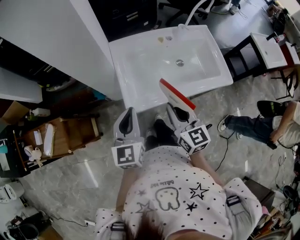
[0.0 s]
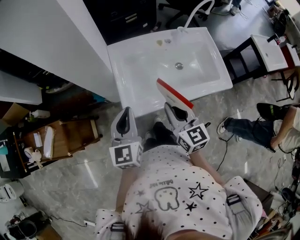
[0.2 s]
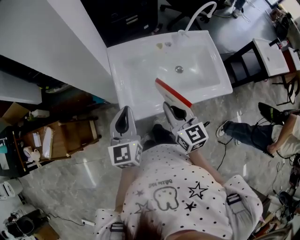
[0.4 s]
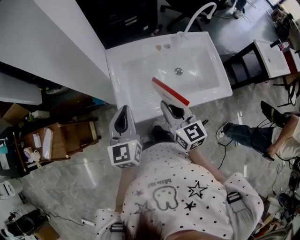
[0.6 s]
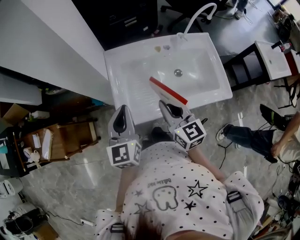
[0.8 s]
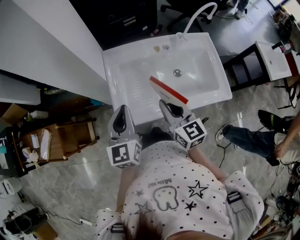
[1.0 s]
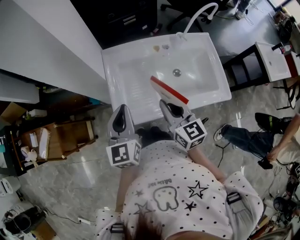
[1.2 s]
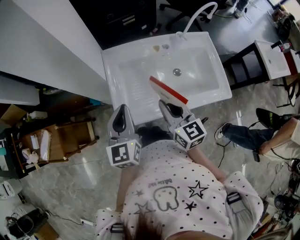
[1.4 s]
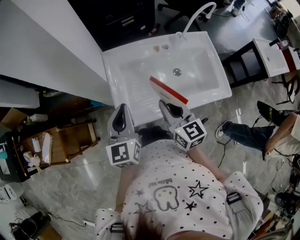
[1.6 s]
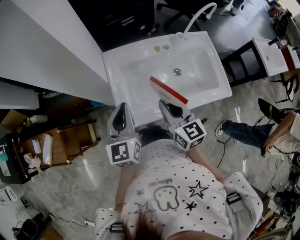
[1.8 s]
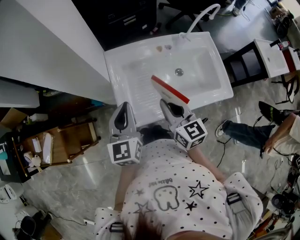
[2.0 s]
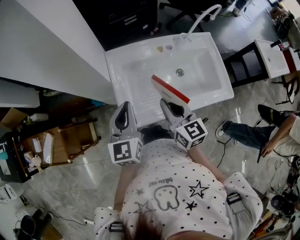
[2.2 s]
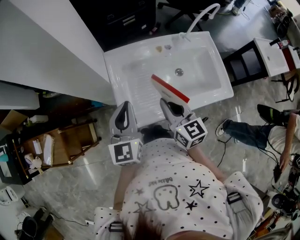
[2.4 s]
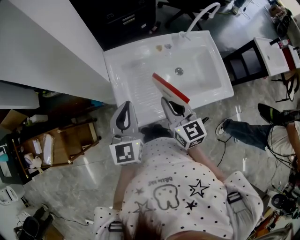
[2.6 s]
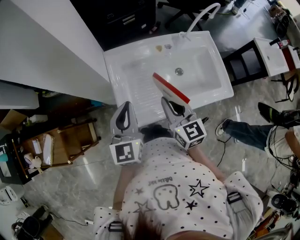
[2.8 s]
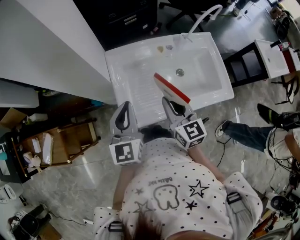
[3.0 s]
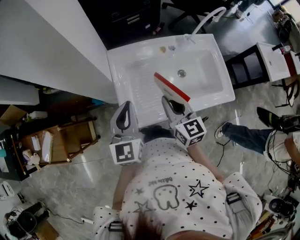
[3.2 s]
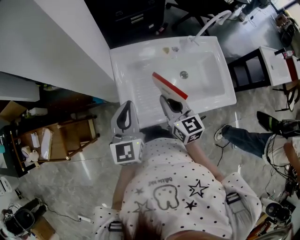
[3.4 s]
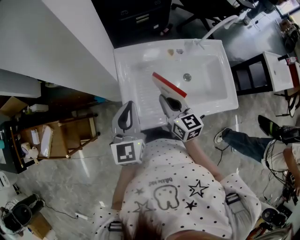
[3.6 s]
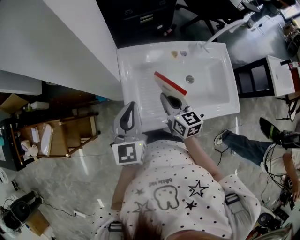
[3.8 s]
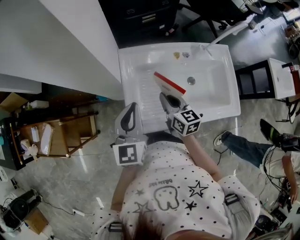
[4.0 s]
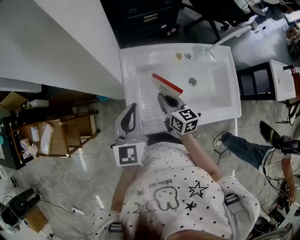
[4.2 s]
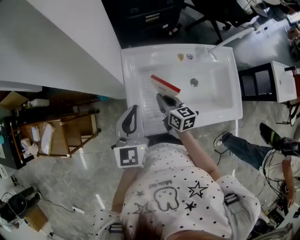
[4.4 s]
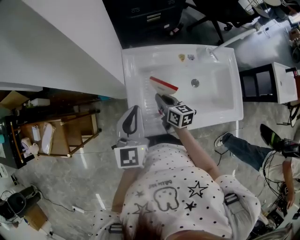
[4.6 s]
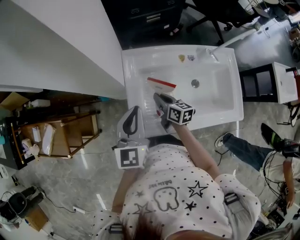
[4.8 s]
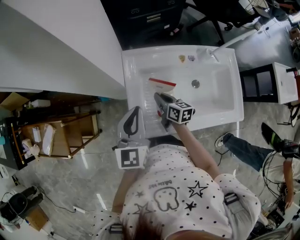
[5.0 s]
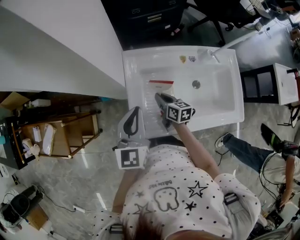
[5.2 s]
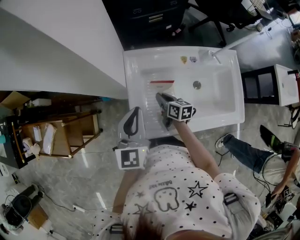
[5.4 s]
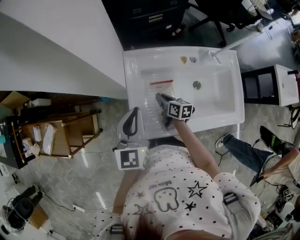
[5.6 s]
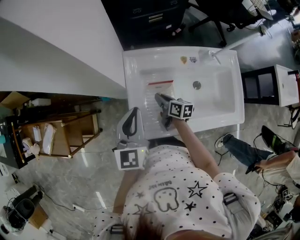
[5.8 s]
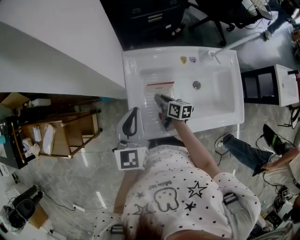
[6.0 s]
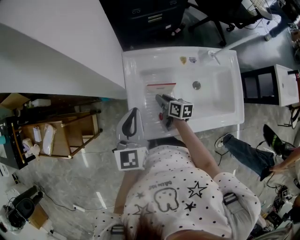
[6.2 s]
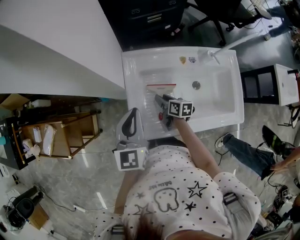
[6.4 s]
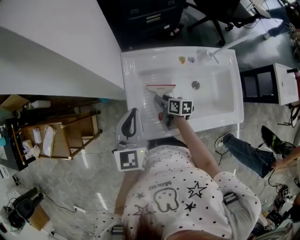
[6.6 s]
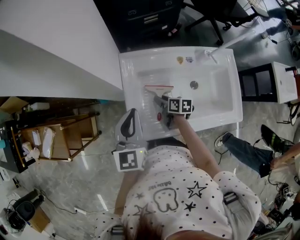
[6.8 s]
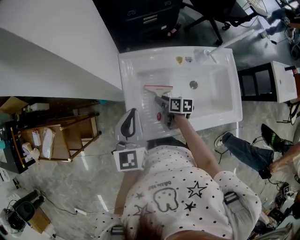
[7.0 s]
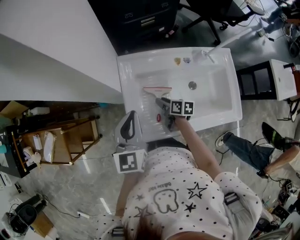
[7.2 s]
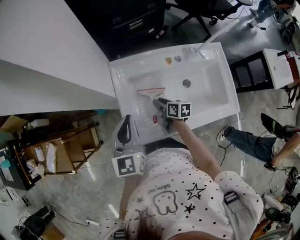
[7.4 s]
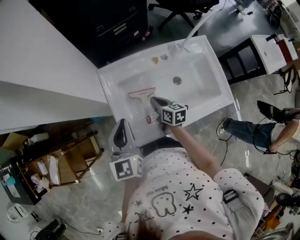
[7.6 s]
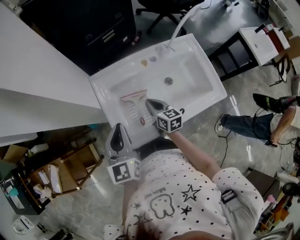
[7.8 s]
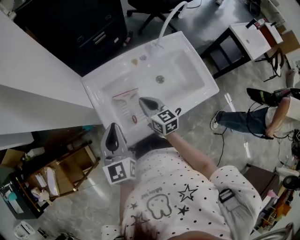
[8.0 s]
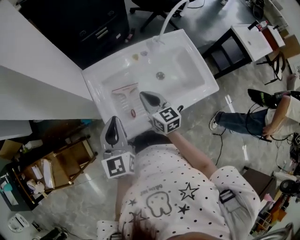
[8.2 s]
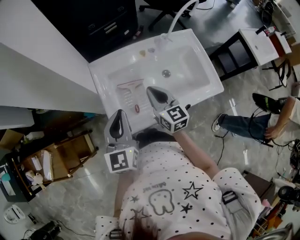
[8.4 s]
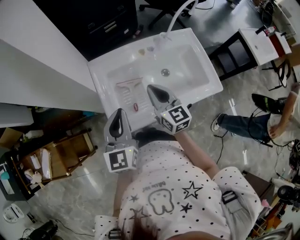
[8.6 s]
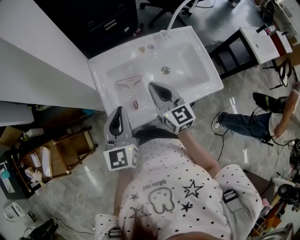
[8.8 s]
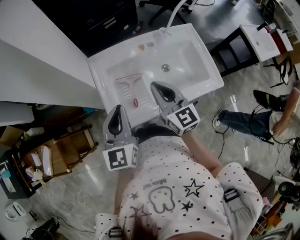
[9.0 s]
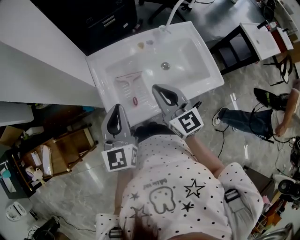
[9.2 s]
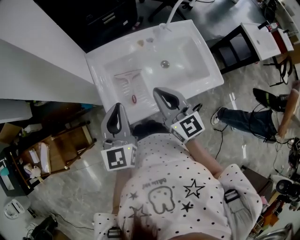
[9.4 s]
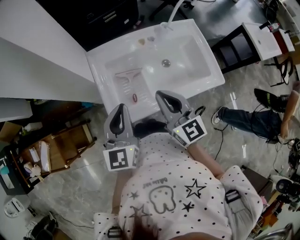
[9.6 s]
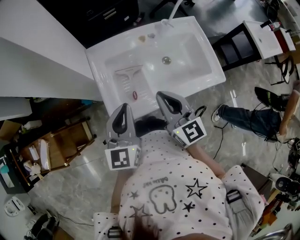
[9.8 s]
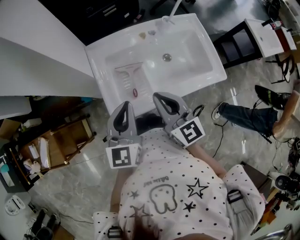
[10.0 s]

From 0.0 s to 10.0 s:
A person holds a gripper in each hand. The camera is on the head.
From 0.0 s to 1.4 s: Both grippers travel together forward, some 10 cm.
From 1.4 s to 2.8 s: The grippers move only a little.
From 2.8 s to 4.2 s: The right gripper is displaced downward and forward by about 15 cm, and swivels roughly 20 degrees. The left gripper moves some 5 cm.
From 4.2 s to 5.8 s: The right gripper shifts approximately 10 cm downward, and changes its angle by approximately 30 degrees.
From 5.8 s to 7.2 s: The right gripper opens its fingers.
From 7.2 s to 8.6 s: The right gripper moves upward, about 20 cm, rotates roughly 60 degrees, and closes, while the left gripper travels backward and to the right by approximately 10 cm.
From 8.6 s to 10.0 s: The right gripper goes about 10 cm backward.

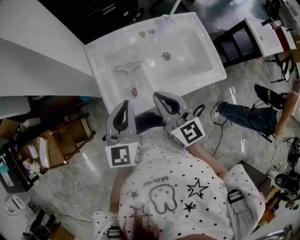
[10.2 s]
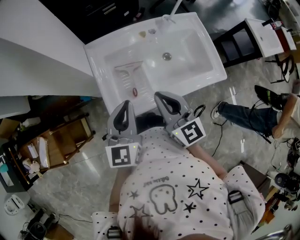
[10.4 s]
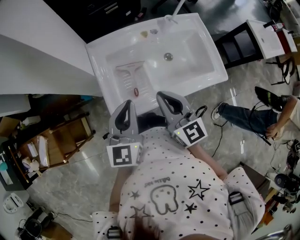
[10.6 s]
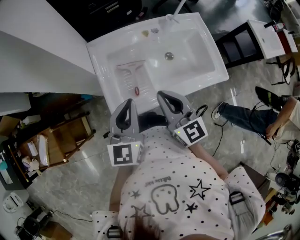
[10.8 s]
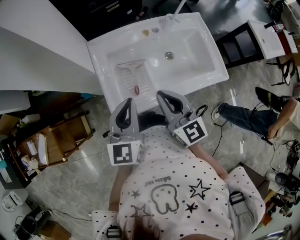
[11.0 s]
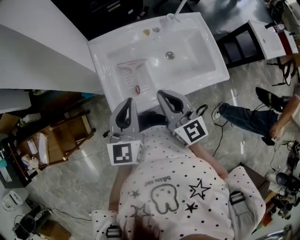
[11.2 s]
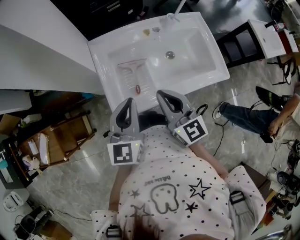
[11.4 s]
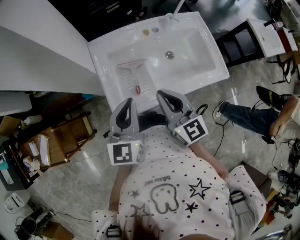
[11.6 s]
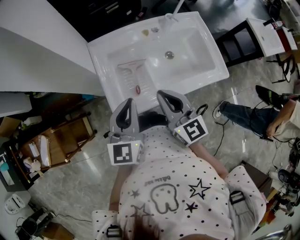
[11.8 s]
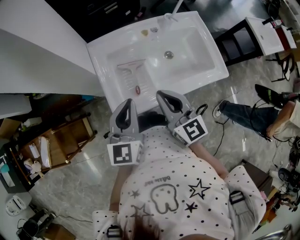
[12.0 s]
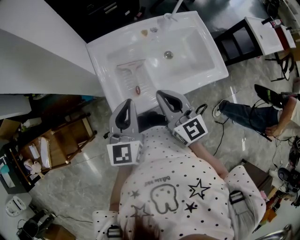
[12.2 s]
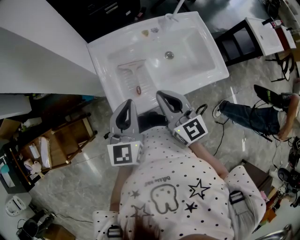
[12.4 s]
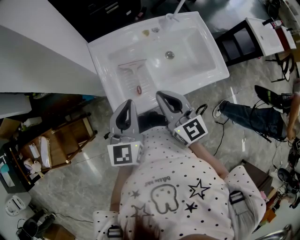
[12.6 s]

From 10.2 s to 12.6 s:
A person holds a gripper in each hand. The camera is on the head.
From 10.2 s to 12.6 s: Neither gripper changes place.

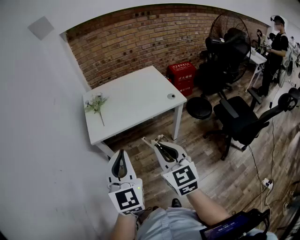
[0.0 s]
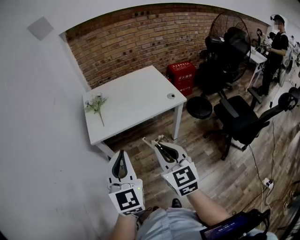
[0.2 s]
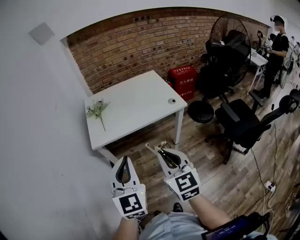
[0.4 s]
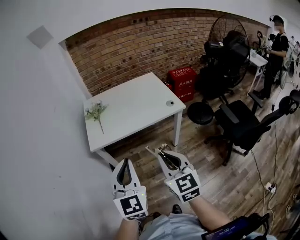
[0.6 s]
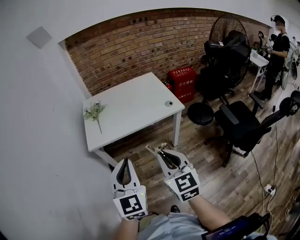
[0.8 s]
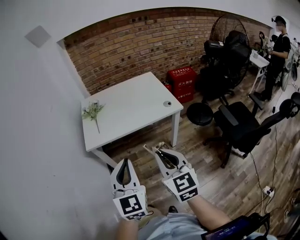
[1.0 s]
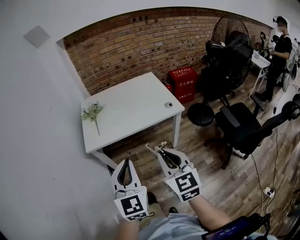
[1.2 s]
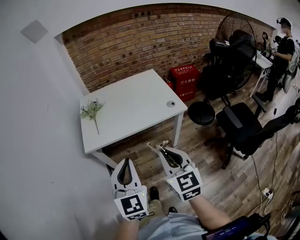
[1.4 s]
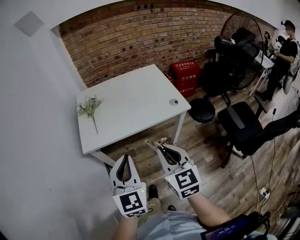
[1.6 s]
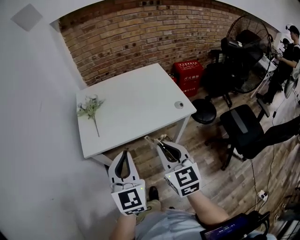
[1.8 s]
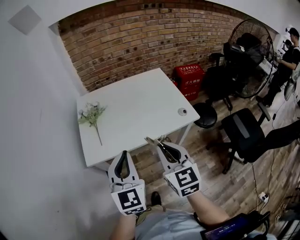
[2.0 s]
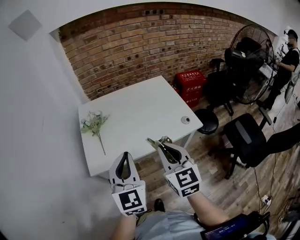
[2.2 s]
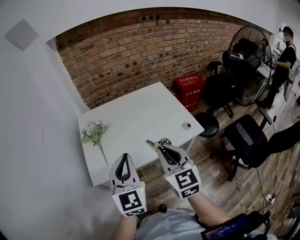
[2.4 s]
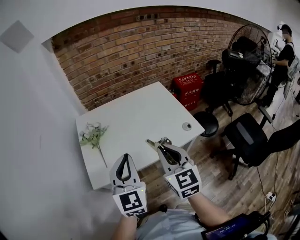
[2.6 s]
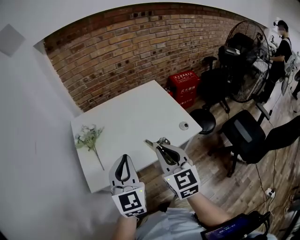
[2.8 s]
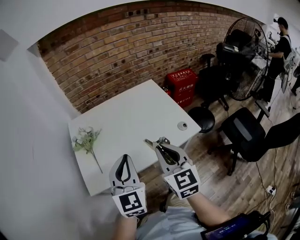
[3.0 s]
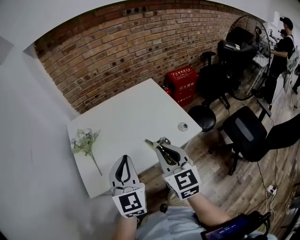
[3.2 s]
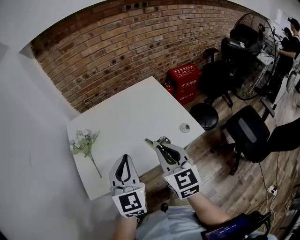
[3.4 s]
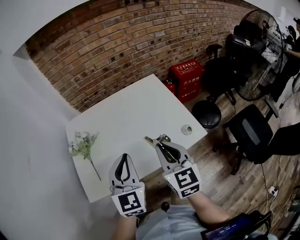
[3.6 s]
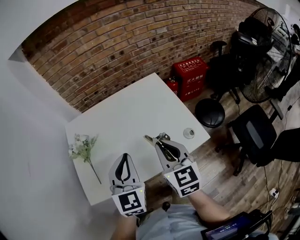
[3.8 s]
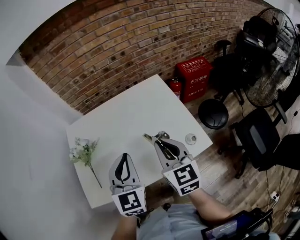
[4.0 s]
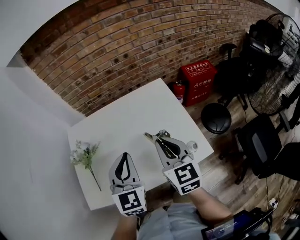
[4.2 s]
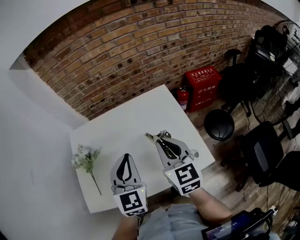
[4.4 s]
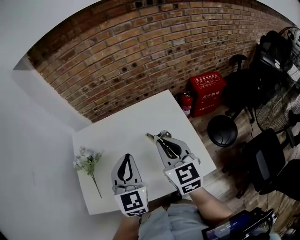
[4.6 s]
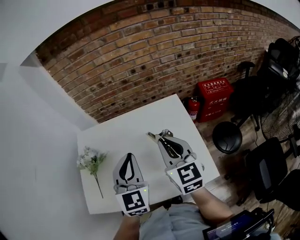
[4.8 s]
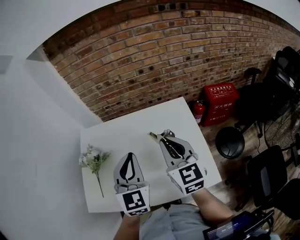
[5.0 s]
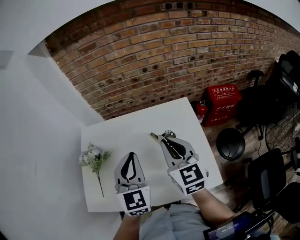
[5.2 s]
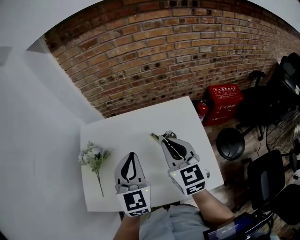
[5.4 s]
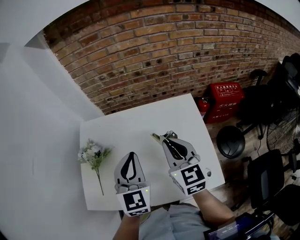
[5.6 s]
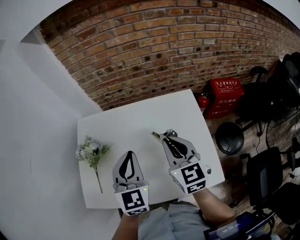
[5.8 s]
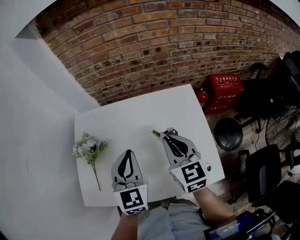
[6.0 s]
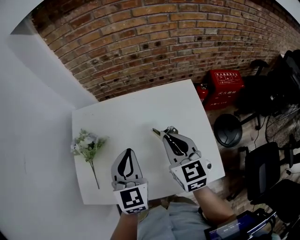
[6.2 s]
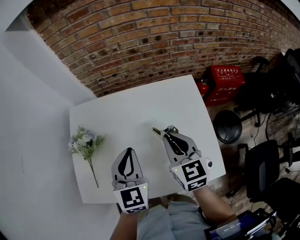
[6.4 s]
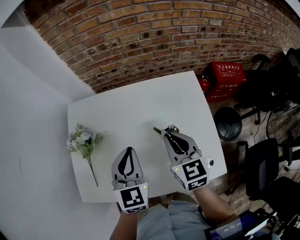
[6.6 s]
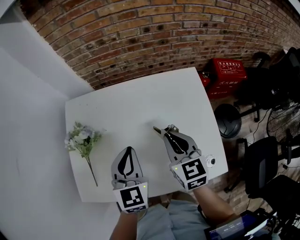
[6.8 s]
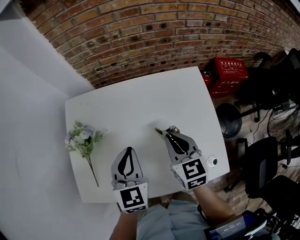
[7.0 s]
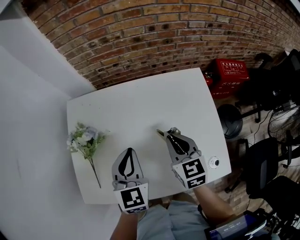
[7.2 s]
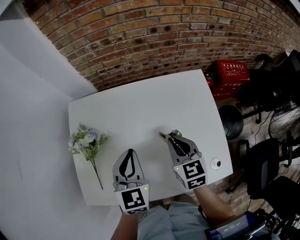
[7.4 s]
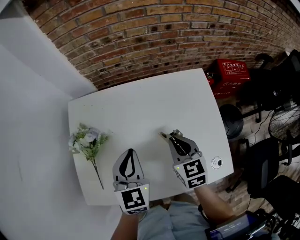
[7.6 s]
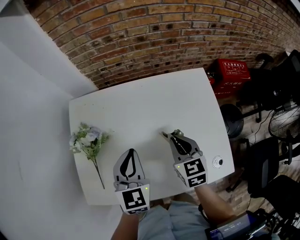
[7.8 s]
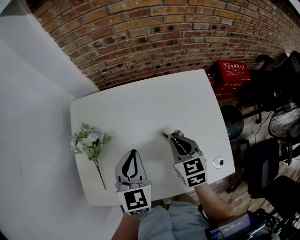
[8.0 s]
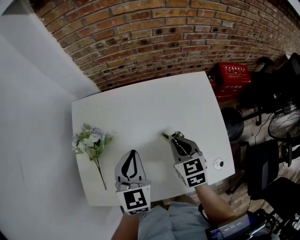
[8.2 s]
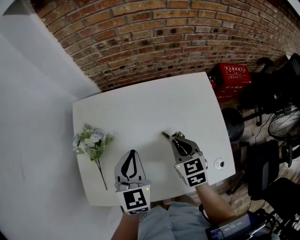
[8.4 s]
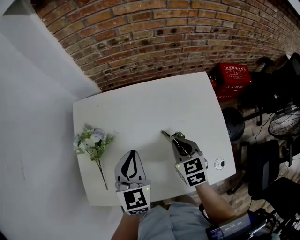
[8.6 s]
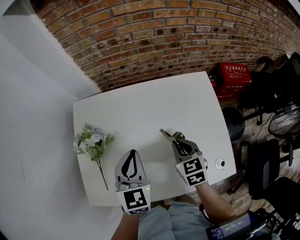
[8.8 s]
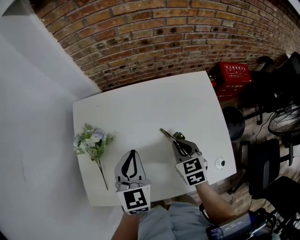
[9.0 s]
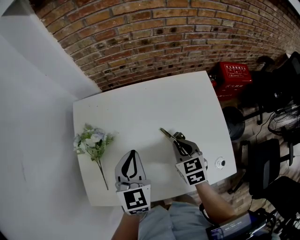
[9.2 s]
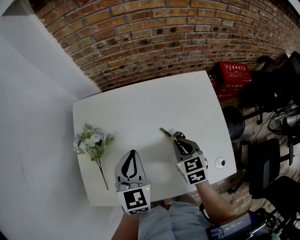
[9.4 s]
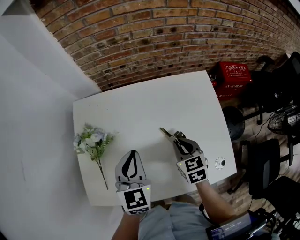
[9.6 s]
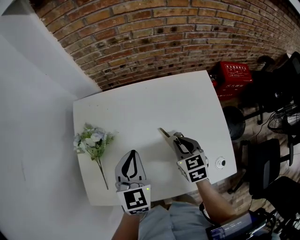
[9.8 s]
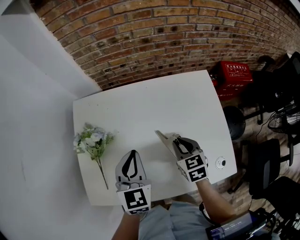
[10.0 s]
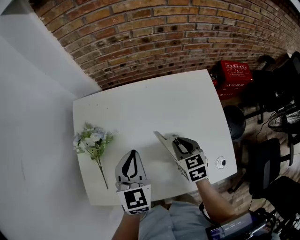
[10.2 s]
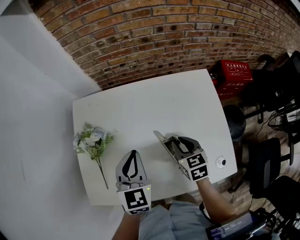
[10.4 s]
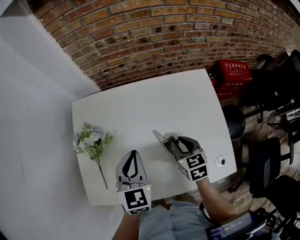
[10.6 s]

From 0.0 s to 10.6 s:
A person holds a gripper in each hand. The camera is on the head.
From 0.0 s to 1.6 s: The right gripper travels forward and to the right by about 10 cm. Meanwhile the left gripper moves forward, to the right and downward, roughly 15 cm.
From 1.6 s to 3.0 s: The two grippers go roughly 20 cm forward.
From 3.0 s to 4.6 s: The left gripper is displaced forward and to the right by roughly 25 cm, while the right gripper heads forward, covering roughly 25 cm.
From 4.6 s to 6.0 s: The right gripper goes some 5 cm forward; the left gripper travels to the left and forward by some 10 cm.
From 6.0 s to 7.6 s: The right gripper is displaced downward by roughly 15 cm. The left gripper shifts roughly 10 cm downward.
From 7.6 s to 9.0 s: The grippers make only small movements.
From 9.0 s to 10.6 s: The right gripper opens its fingers.

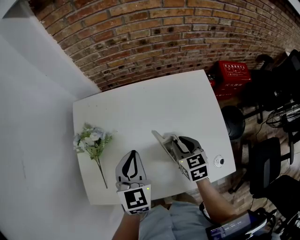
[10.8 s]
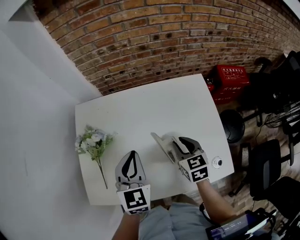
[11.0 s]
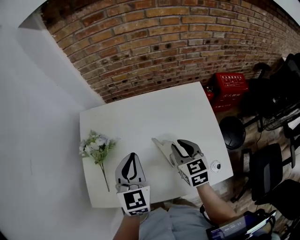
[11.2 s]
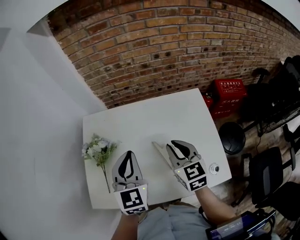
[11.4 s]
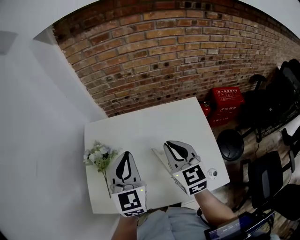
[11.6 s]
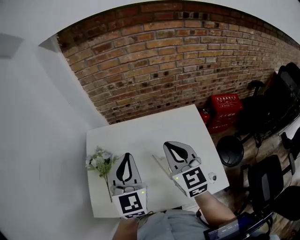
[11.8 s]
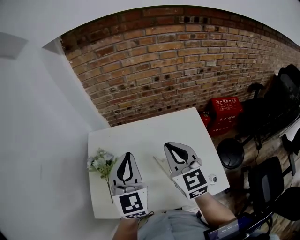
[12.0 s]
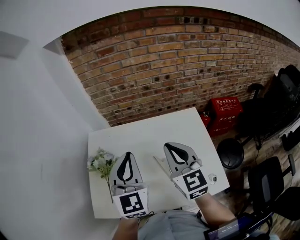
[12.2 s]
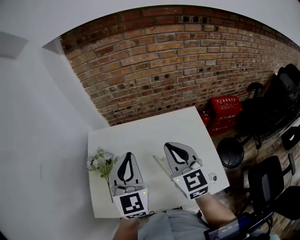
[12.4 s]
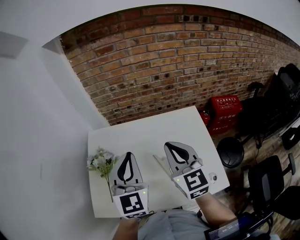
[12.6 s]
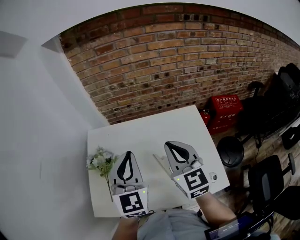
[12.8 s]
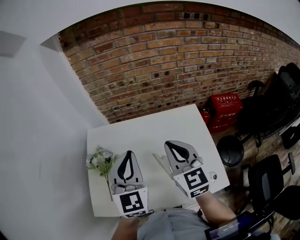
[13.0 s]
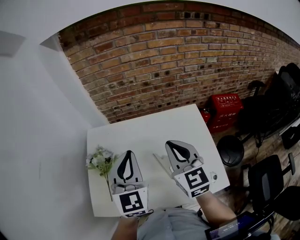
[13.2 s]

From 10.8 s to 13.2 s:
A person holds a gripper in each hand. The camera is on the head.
From 10.8 s to 12.0 s: The grippers both shift upward by some 25 cm. The right gripper points its fingers roughly 30 degrees further upward, and closes.
From 12.0 s to 13.2 s: Neither gripper changes place.
